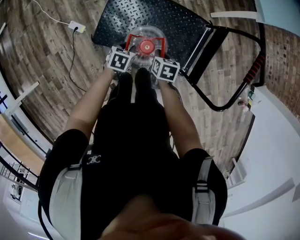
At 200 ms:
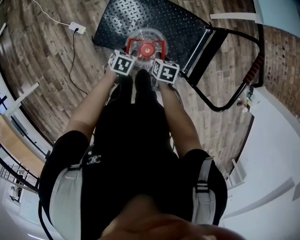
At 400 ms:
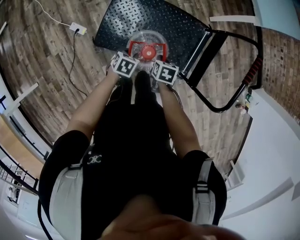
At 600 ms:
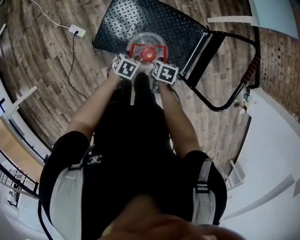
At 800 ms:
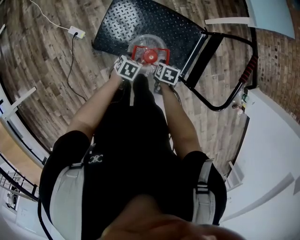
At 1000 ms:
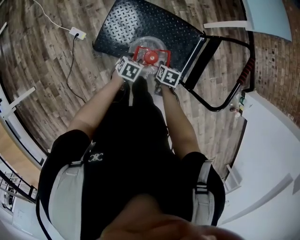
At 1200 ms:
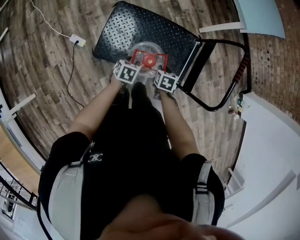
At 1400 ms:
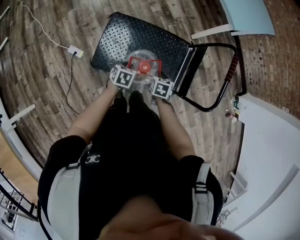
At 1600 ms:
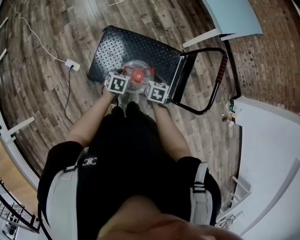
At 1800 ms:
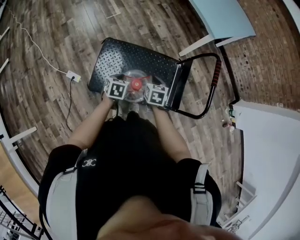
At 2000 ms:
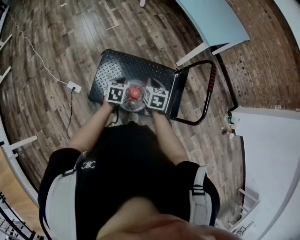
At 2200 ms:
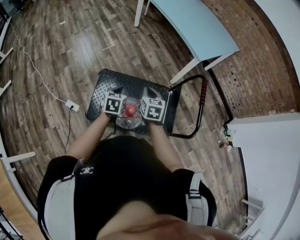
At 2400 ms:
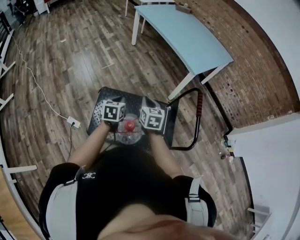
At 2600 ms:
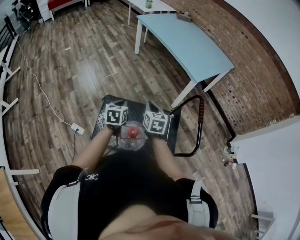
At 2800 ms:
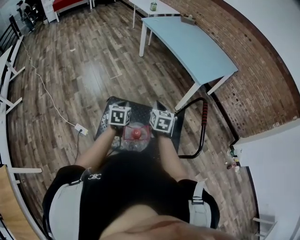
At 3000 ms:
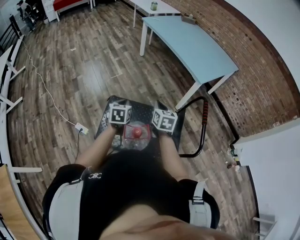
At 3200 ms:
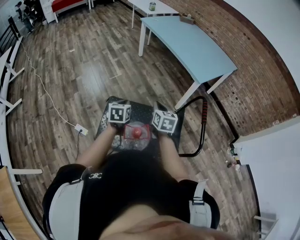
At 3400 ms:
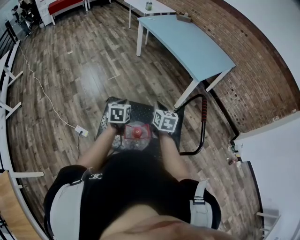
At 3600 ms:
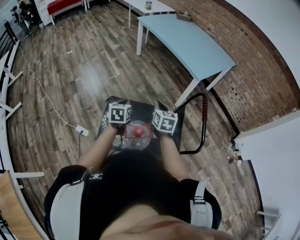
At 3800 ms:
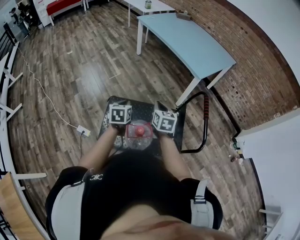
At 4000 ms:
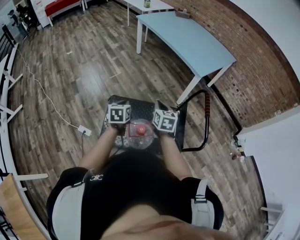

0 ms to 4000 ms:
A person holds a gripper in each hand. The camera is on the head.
0 ms to 1400 ms: The left gripper heads upward, covering approximately 5 cm, while the right gripper moves some 5 cm.
1400 ms to 2600 ms: The grippers both shift upward and forward by roughly 25 cm. The left gripper swivels about 30 degrees, and closes, while the right gripper tips its fingers upward by some 30 degrees.
2600 ms to 4000 ms: The grippers stay close to where they were, moving slightly.

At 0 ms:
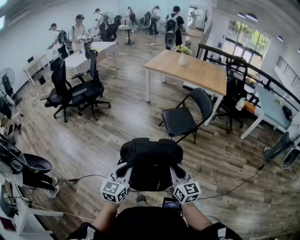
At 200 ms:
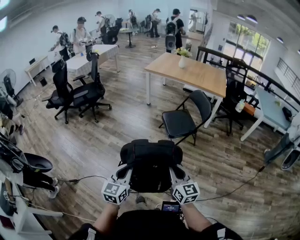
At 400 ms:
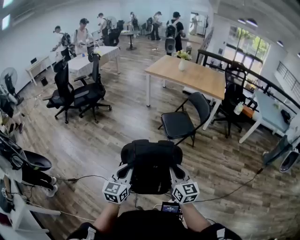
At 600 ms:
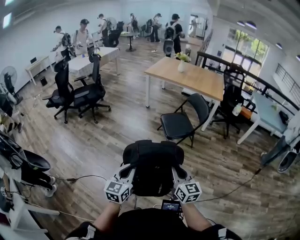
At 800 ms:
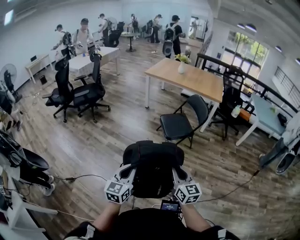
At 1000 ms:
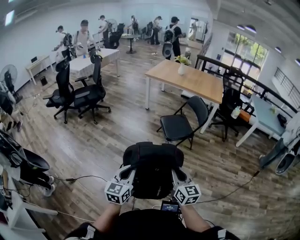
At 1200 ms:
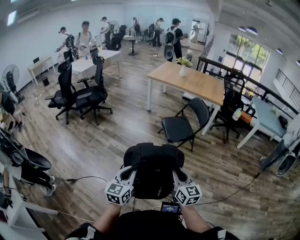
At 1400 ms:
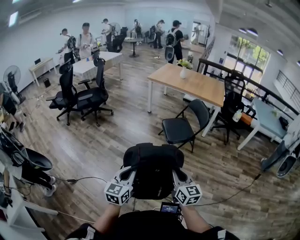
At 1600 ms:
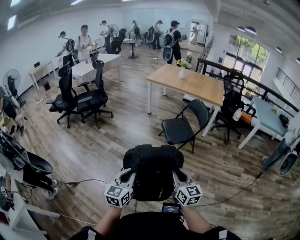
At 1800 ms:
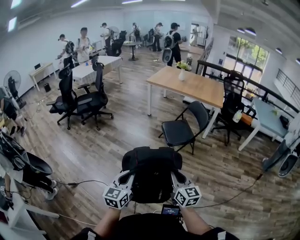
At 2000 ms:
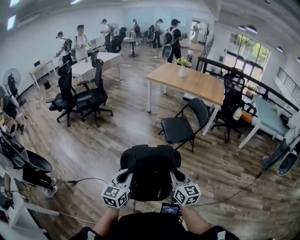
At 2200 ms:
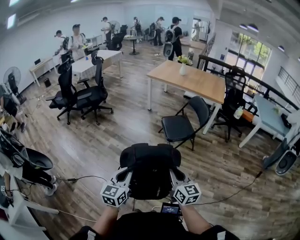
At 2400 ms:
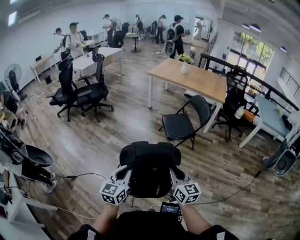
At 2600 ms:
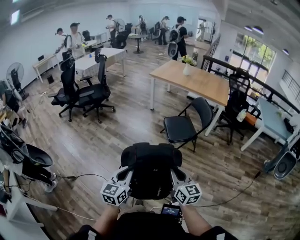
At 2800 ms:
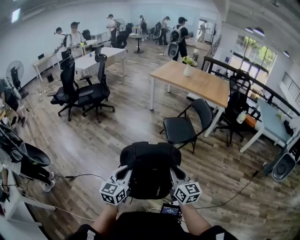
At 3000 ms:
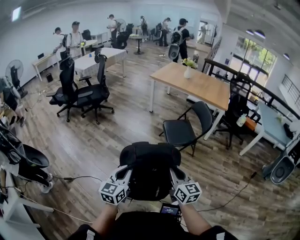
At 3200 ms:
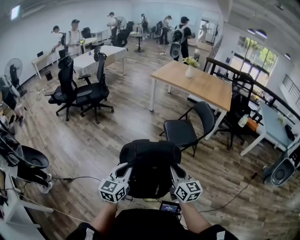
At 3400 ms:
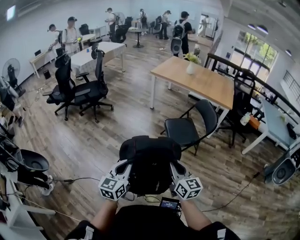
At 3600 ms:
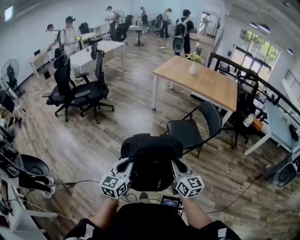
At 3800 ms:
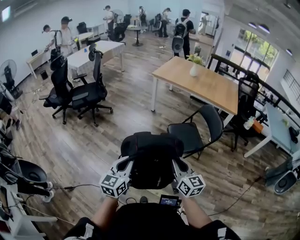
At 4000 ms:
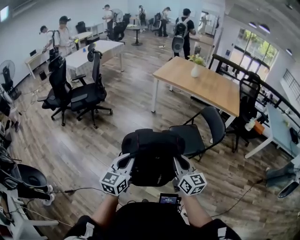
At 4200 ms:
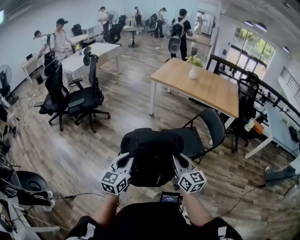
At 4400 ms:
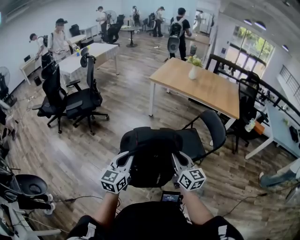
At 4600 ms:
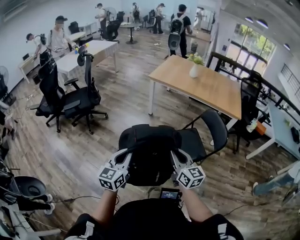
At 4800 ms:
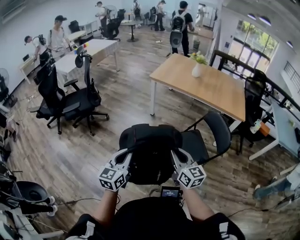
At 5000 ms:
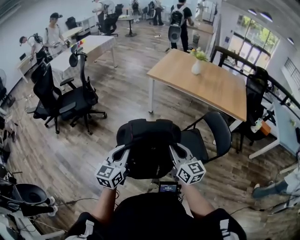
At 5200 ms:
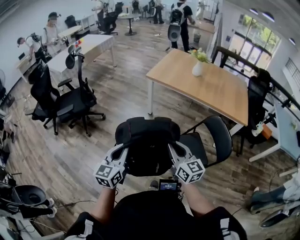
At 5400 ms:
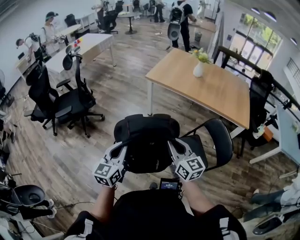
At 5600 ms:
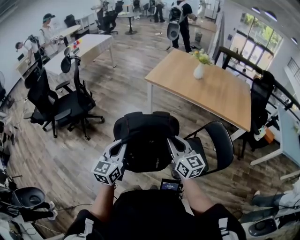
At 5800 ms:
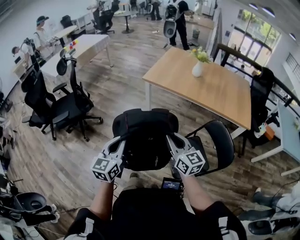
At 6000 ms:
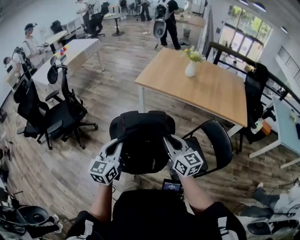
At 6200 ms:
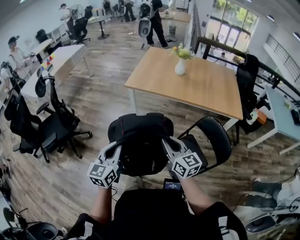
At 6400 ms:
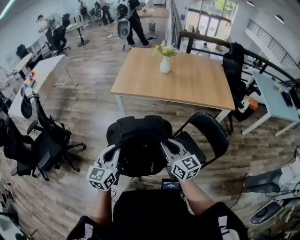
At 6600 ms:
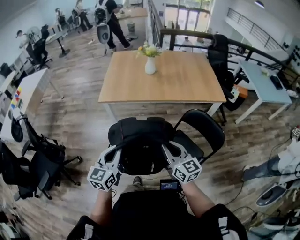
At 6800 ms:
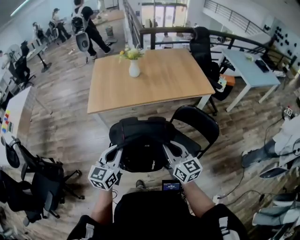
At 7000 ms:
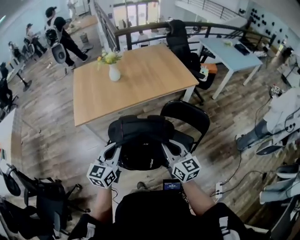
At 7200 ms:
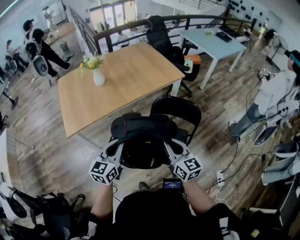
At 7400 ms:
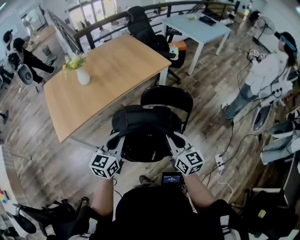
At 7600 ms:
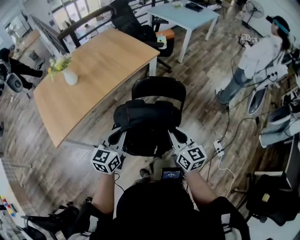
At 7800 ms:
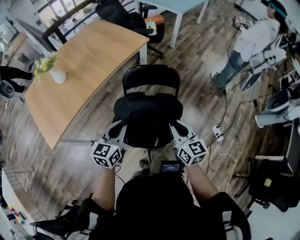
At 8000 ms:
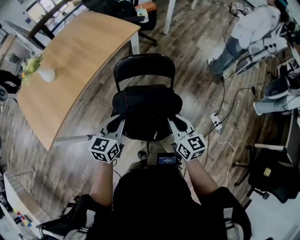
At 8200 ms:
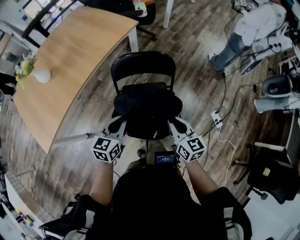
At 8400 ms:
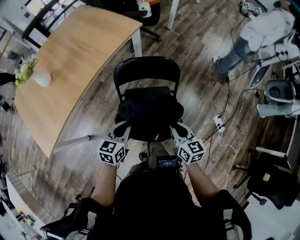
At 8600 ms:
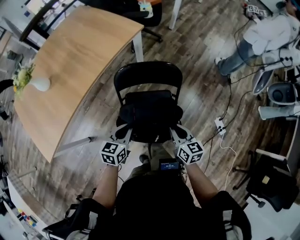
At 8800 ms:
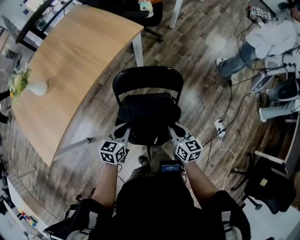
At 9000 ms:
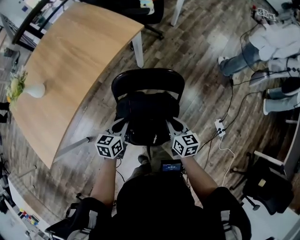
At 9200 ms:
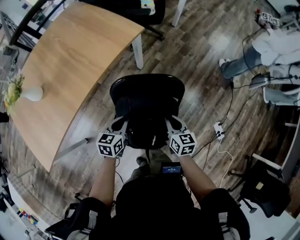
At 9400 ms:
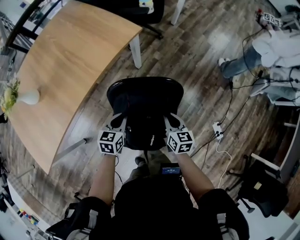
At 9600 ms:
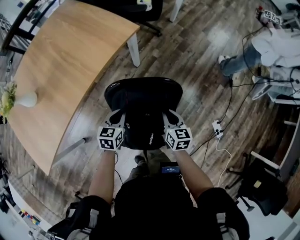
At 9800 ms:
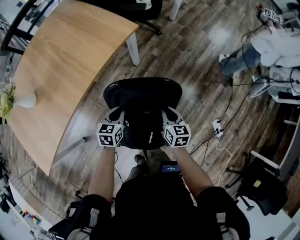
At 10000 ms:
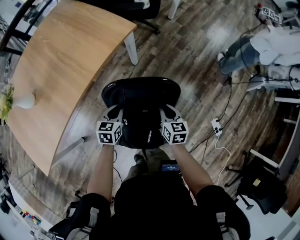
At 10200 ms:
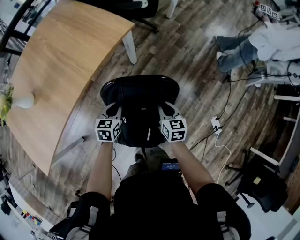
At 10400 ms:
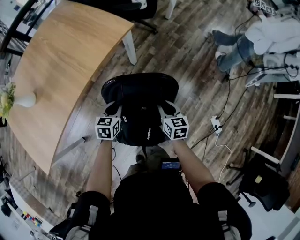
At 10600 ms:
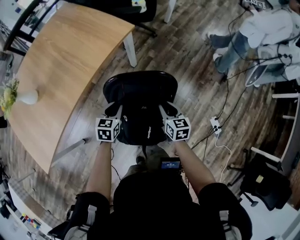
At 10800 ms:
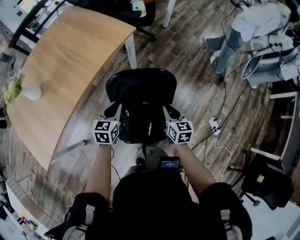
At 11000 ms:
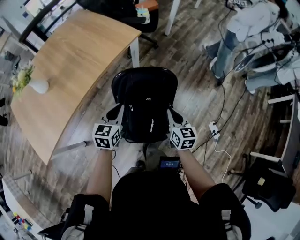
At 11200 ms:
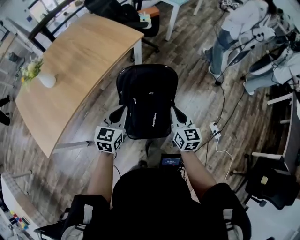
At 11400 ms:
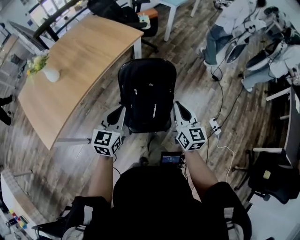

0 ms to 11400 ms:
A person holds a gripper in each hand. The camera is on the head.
0 ms to 1400 ms: Both grippers travel together backward, some 10 cm.
1400 ms to 2800 ms: The right gripper shifts roughly 5 cm forward.
2800 ms to 4200 ms: The grippers both shift forward by some 35 cm.
4200 ms to 5600 ms: Both grippers travel together forward, roughly 40 cm.
5600 ms to 7200 ms: The right gripper ends up some 15 cm from where it was, and changes its angle by about 60 degrees; the left gripper ends up approximately 35 cm from where it was, and turns by approximately 60 degrees.
7200 ms to 8600 ms: The left gripper moves about 35 cm, and swivels some 40 degrees, while the right gripper goes approximately 20 cm downward, and turns by about 30 degrees.
8600 ms to 10000 ms: The right gripper goes approximately 20 cm forward; the left gripper travels forward and downward by roughly 25 cm.
10000 ms to 11400 ms: The two grippers go approximately 40 cm backward and upward. The left gripper changes its angle by approximately 30 degrees, while the right gripper changes its angle by roughly 30 degrees.

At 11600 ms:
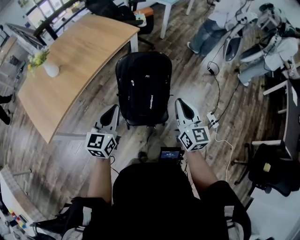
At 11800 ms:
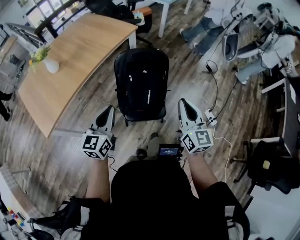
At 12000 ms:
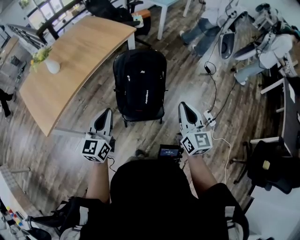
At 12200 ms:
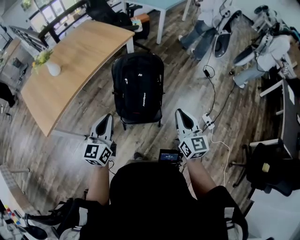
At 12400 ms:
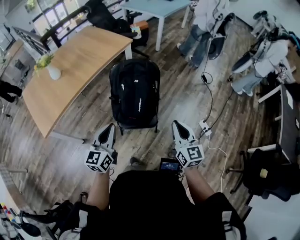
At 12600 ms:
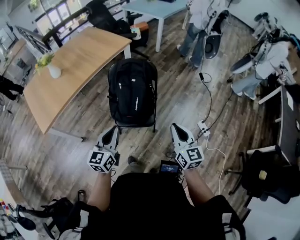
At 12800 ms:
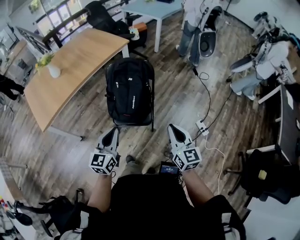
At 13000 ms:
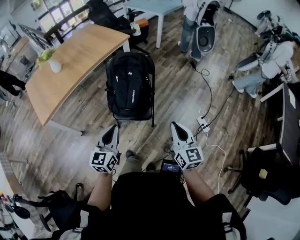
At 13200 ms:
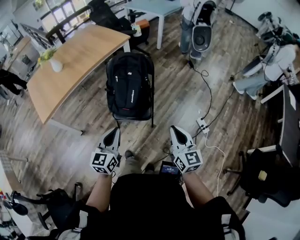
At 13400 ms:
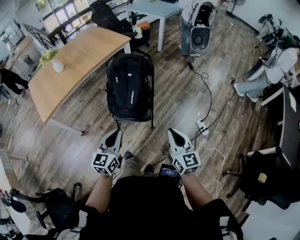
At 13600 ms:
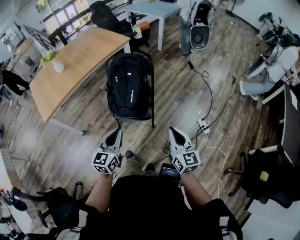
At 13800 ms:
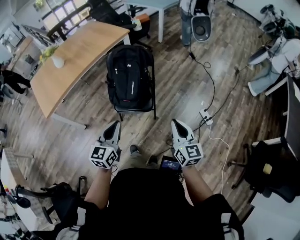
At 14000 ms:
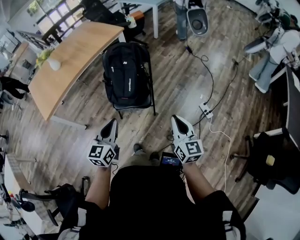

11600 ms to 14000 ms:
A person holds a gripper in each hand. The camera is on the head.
11600 ms to 12800 ms: Both grippers travel together backward and to the right, some 25 cm.
12800 ms to 14000 ms: The left gripper heads backward and to the right, covering about 10 cm, while the right gripper moves to the right and backward, some 10 cm.

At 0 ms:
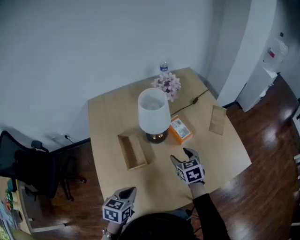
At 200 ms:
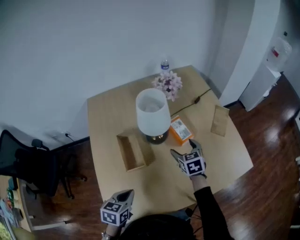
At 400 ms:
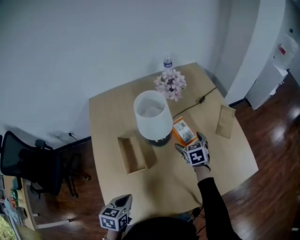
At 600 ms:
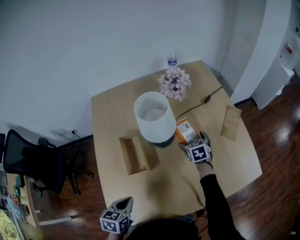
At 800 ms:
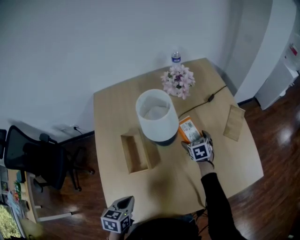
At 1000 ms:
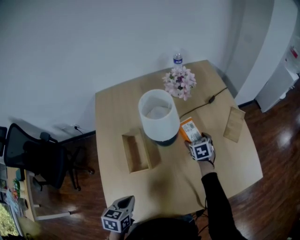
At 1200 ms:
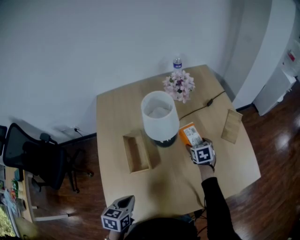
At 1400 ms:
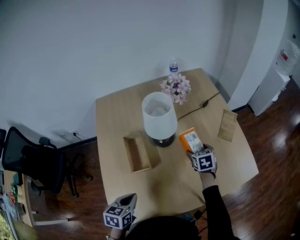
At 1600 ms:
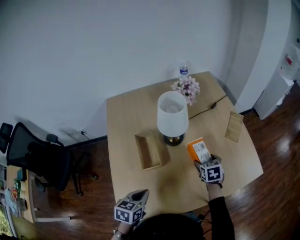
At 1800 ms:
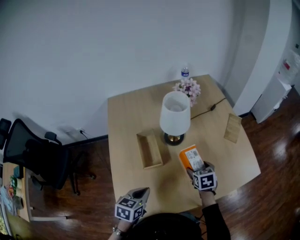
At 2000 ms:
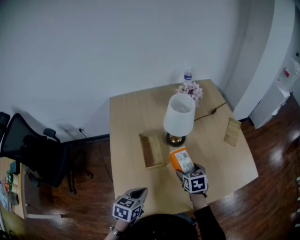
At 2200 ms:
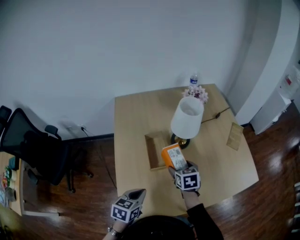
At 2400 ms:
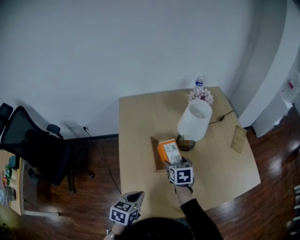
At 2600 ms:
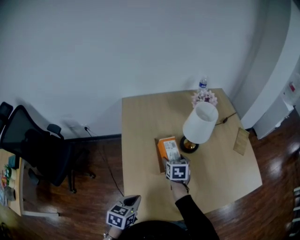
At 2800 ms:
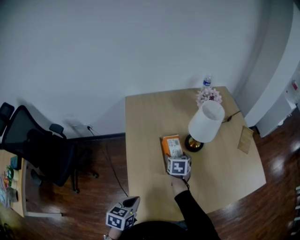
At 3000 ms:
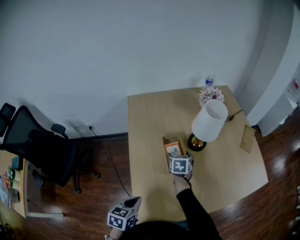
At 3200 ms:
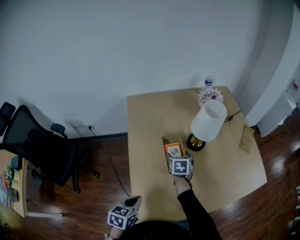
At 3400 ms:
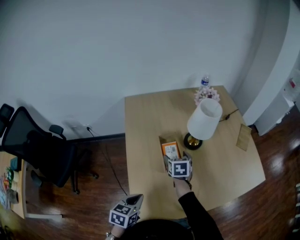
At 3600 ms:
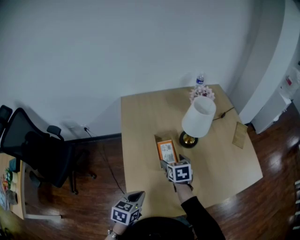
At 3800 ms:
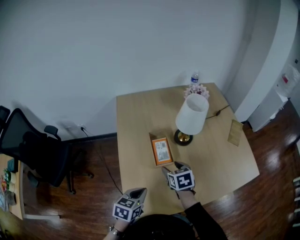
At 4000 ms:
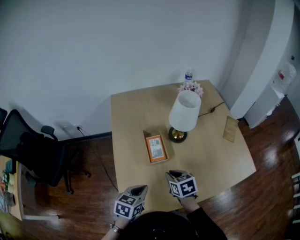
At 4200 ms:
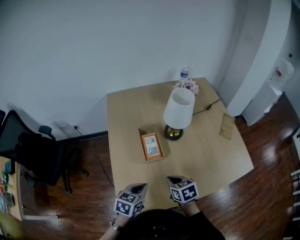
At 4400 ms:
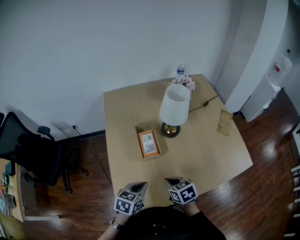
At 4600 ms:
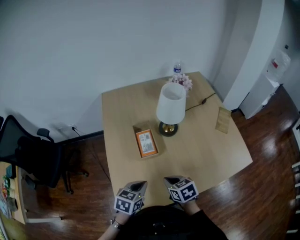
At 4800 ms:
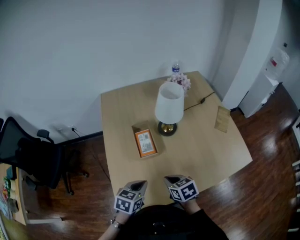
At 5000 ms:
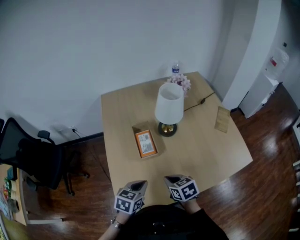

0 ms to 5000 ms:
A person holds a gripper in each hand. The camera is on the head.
0 ms to 1600 ms: The right gripper moves to the right, roughly 10 cm, and travels forward and back again, roughly 15 cm each way.
1600 ms to 3400 ms: The left gripper moves to the left, roughly 15 cm. The right gripper moves to the left, about 30 cm.
3400 ms to 5000 ms: The left gripper shifts some 15 cm to the right, while the right gripper heads backward, covering approximately 20 cm, rotates about 20 degrees, and closes up.
